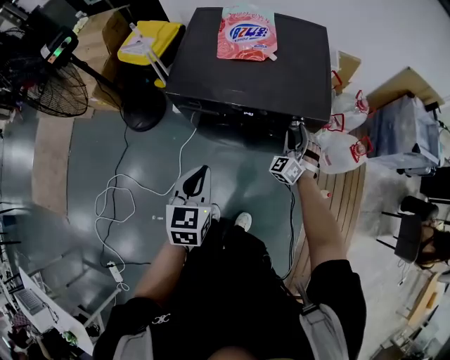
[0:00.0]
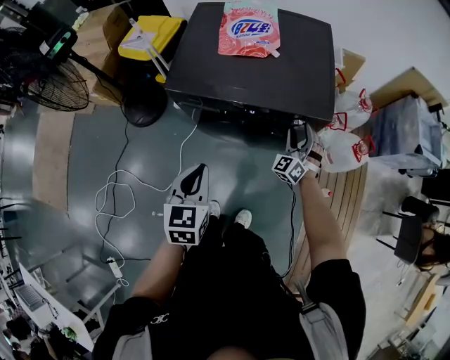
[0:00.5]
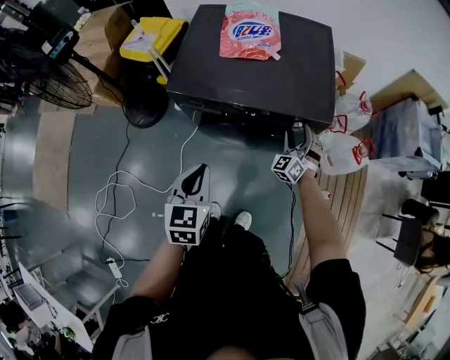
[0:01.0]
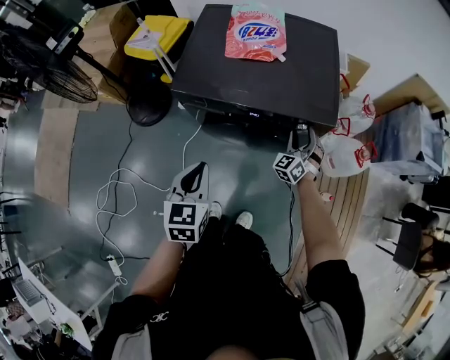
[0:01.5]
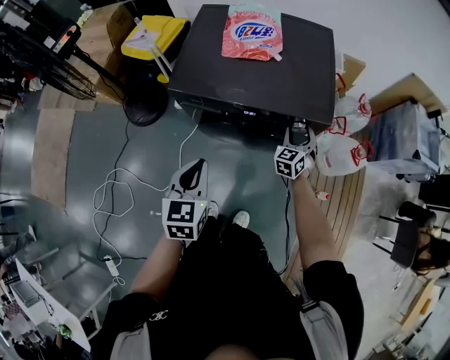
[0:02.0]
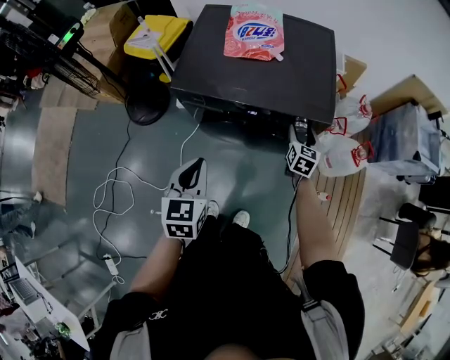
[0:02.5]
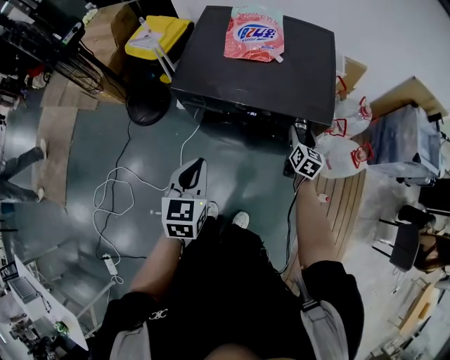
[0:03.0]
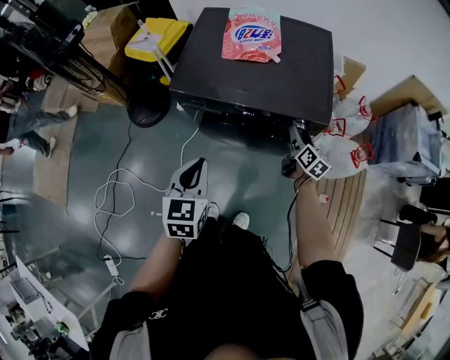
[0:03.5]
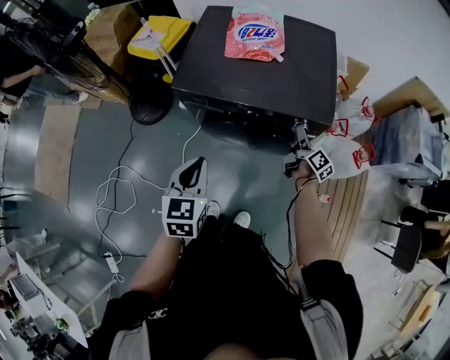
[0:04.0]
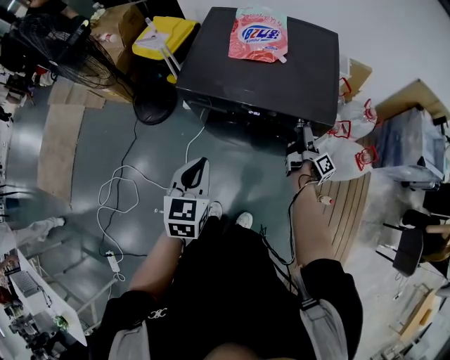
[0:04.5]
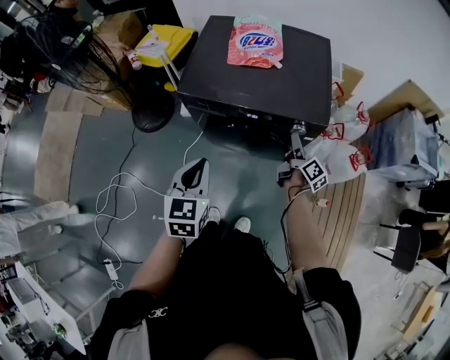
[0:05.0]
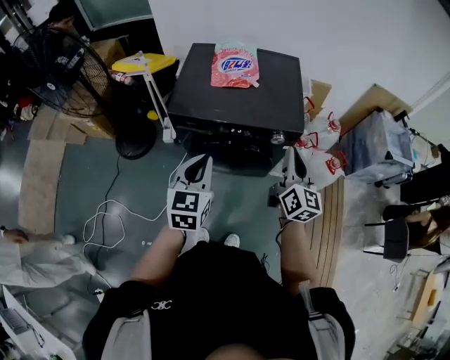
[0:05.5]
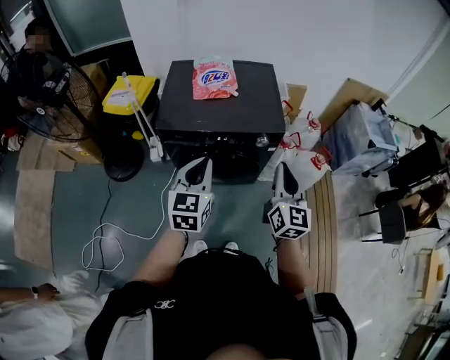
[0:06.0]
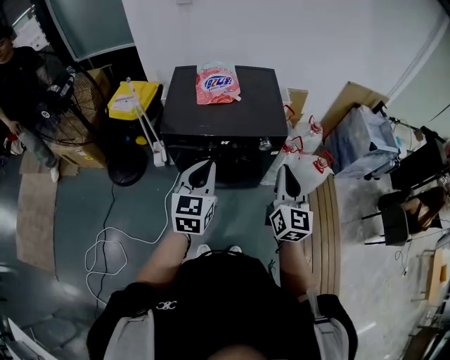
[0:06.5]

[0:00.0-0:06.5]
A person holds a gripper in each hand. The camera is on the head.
0:00.0 to 0:02.0: The right gripper swivels about 30 degrees.
0:02.0 to 0:04.5: The right gripper twists roughly 110 degrees clockwise, seen from behind.
0:04.5 to 0:06.5: The right gripper shifts roughly 40 cm upward and backward, twists roughly 80 degrees counterclockwise, seen from behind, and closes up; the left gripper goes roughly 10 cm upward, and swivels about 20 degrees.

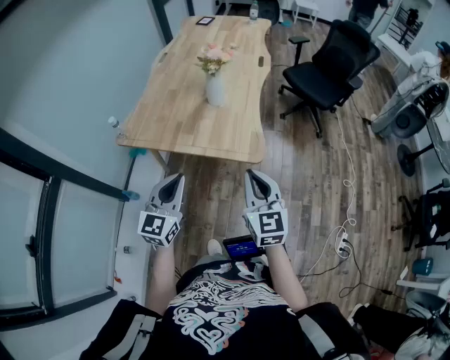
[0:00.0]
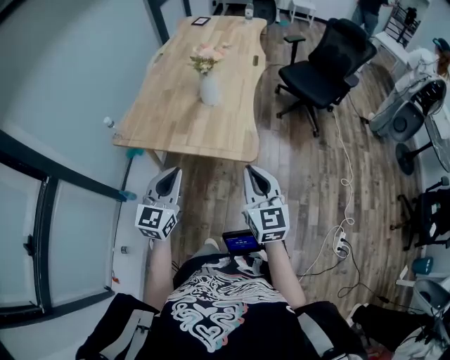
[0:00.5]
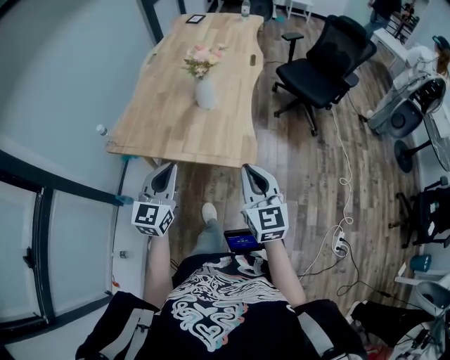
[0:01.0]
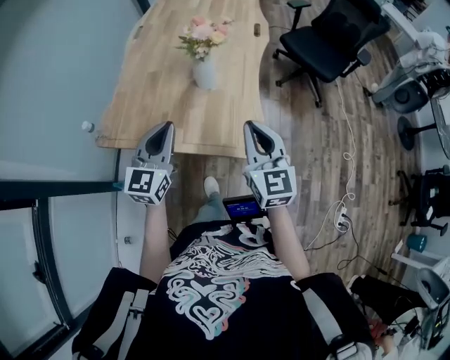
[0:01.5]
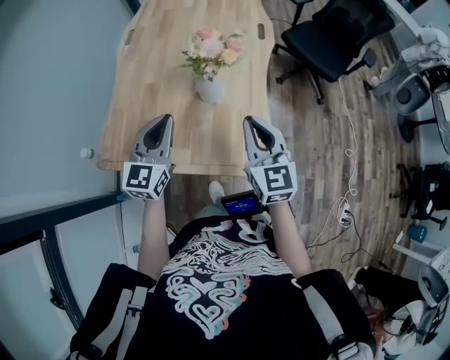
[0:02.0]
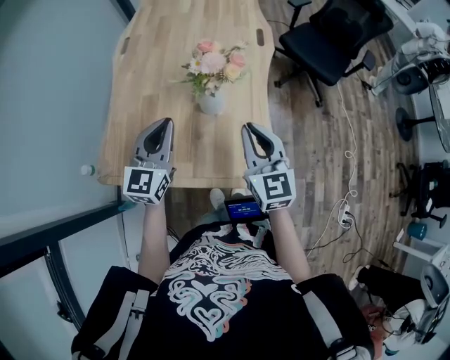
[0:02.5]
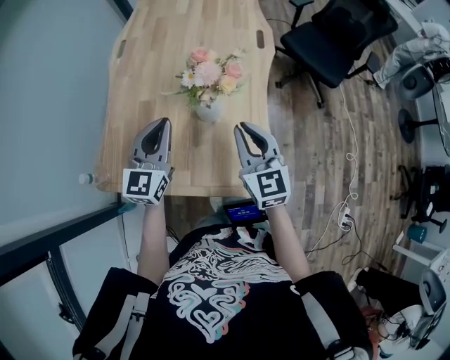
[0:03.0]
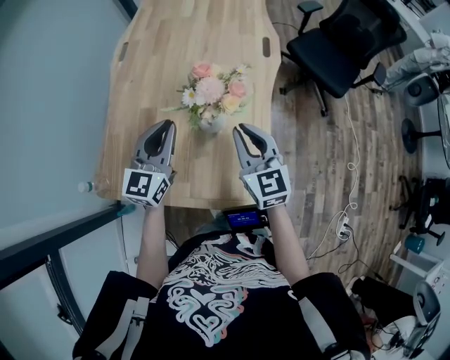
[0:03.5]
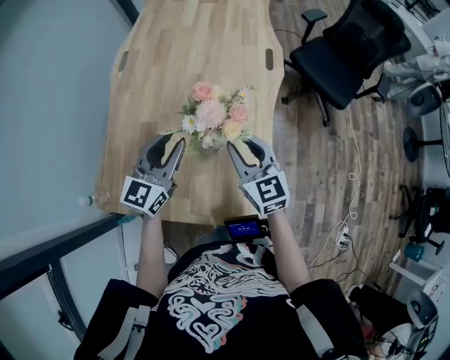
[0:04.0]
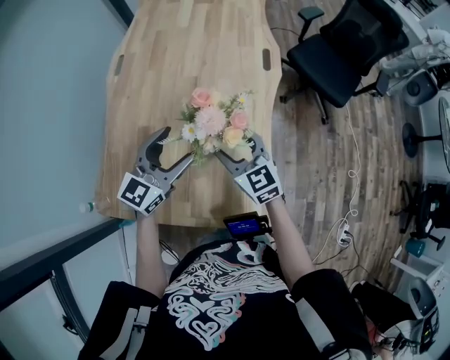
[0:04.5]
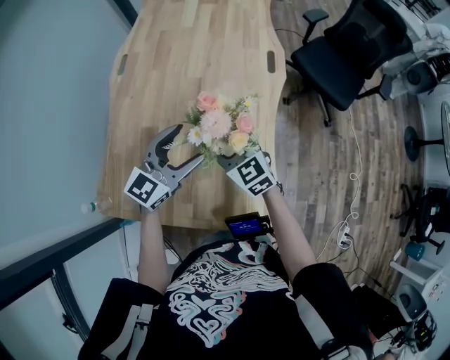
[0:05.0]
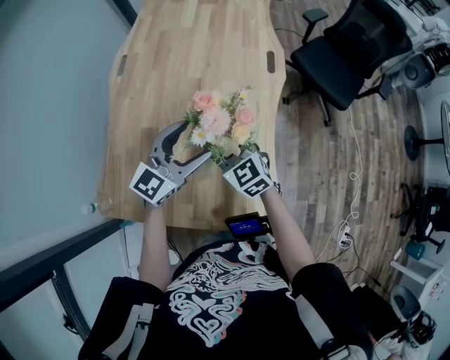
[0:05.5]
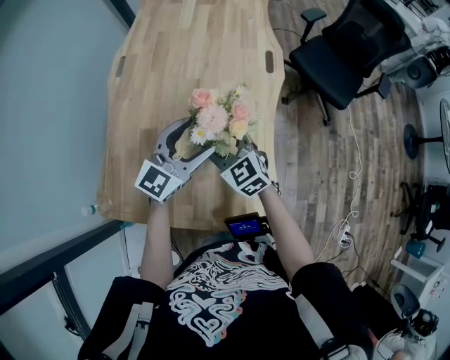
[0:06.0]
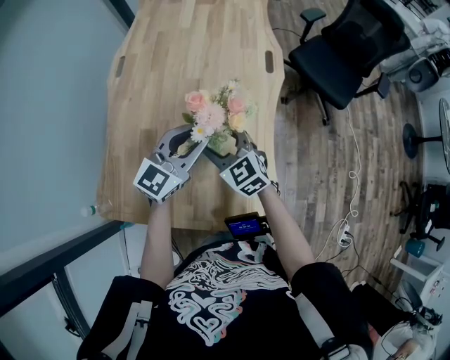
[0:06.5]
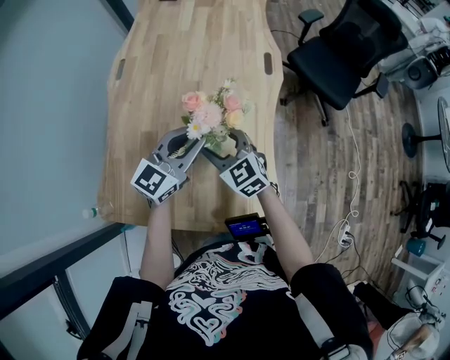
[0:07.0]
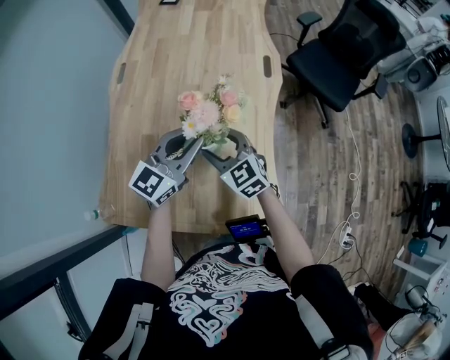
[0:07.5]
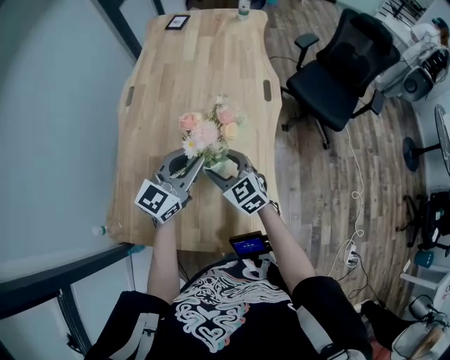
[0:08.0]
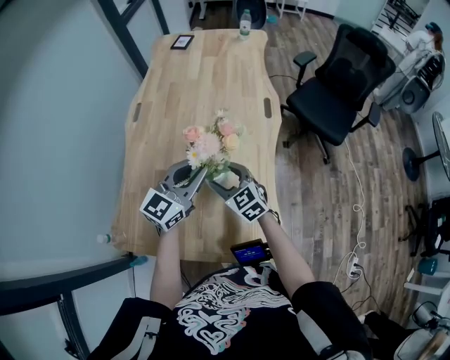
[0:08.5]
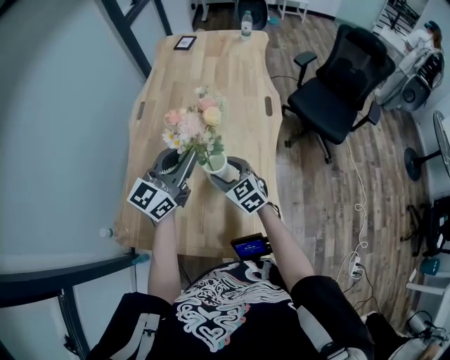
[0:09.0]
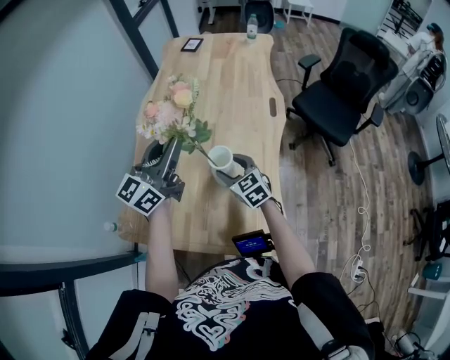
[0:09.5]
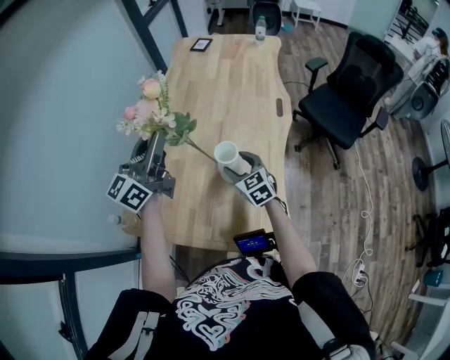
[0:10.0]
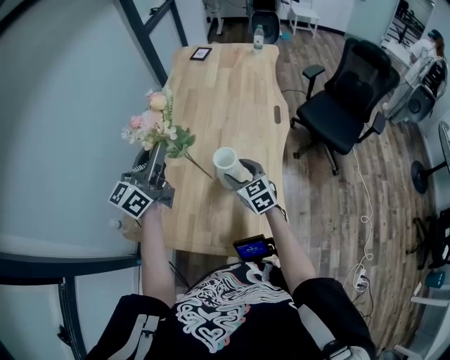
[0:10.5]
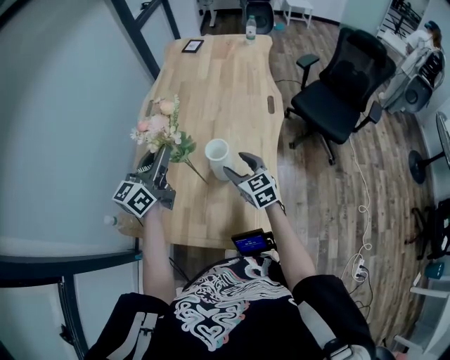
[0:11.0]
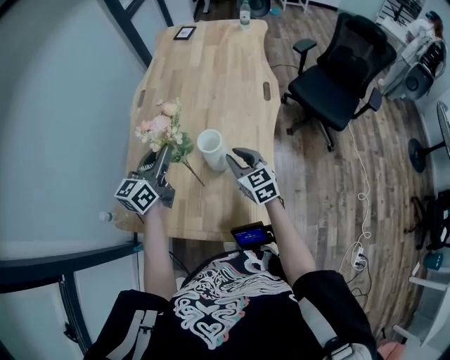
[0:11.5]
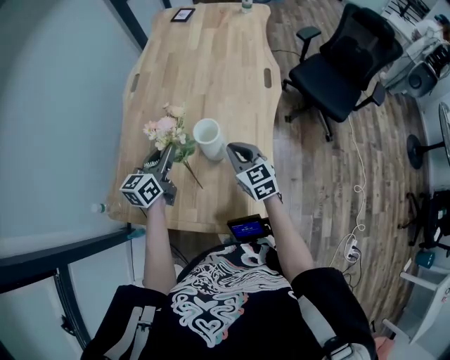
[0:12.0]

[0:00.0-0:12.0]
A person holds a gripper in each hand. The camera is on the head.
0:00.0 to 0:02.0: Both grippers move forward, roughly 30 cm.
0:02.0 to 0:04.0: The right gripper travels forward and downward by some 15 cm; the left gripper shifts roughly 15 cm forward.
0:04.0 to 0:06.0: The left gripper goes some 5 cm to the right, and opens its fingers, while the right gripper is displaced to the left by roughly 10 cm, changes its angle by approximately 20 degrees, and opens.
0:06.0 to 0:08.0: The left gripper closes.
0:08.0 to 0:10.0: The left gripper shifts some 20 cm upward and to the left, and swivels roughly 30 degrees.
0:10.0 to 0:12.0: The left gripper goes about 25 cm downward, and angles its fingers downward, by approximately 30 degrees. Meanwhile the right gripper closes.

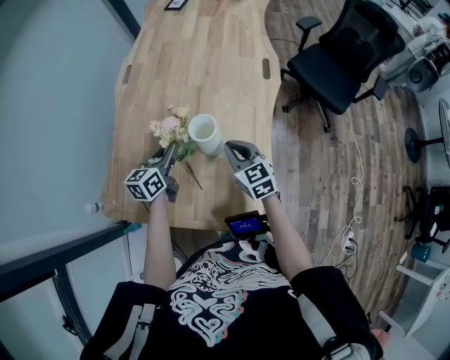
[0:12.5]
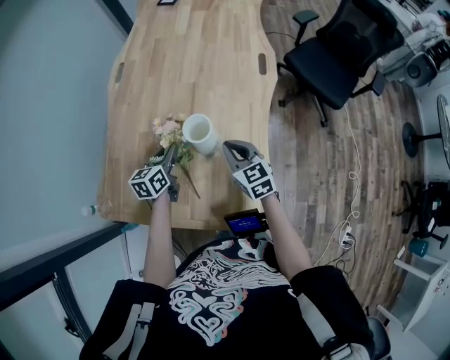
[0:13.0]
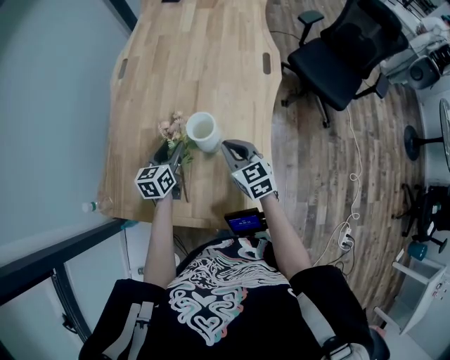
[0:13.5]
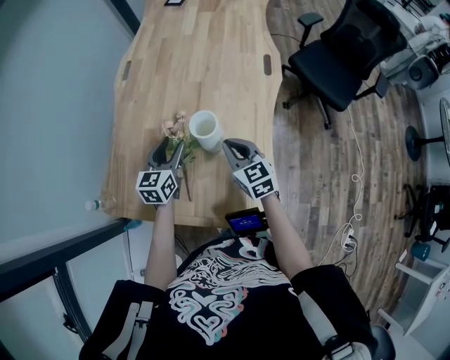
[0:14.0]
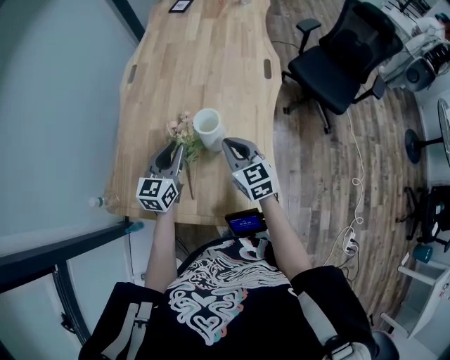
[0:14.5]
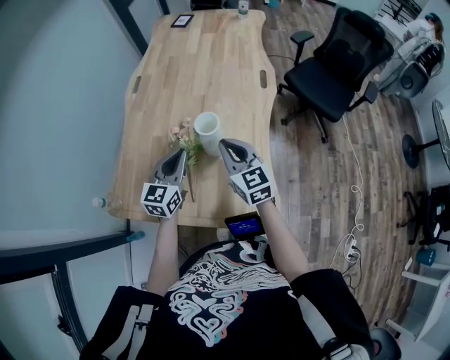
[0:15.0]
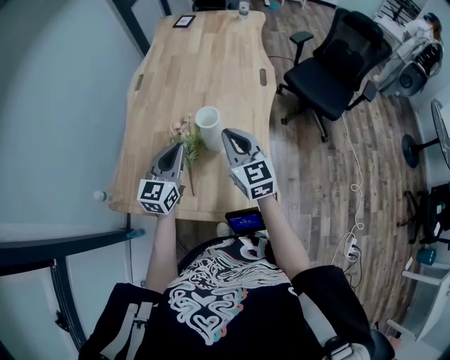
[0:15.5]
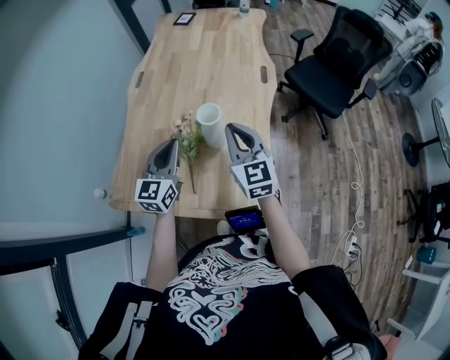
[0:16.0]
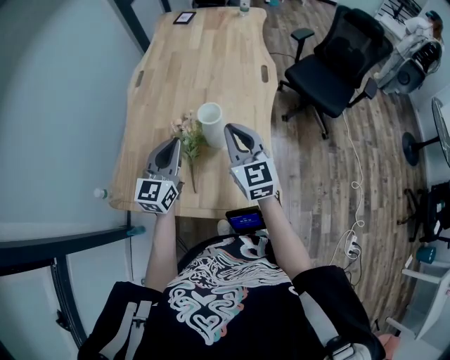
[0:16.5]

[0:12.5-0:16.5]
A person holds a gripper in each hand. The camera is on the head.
0:12.5 to 0:14.5: The left gripper ends up roughly 5 cm from where it was, and rotates about 20 degrees.
0:14.5 to 0:16.5: Both grippers travel together upward, approximately 10 cm.

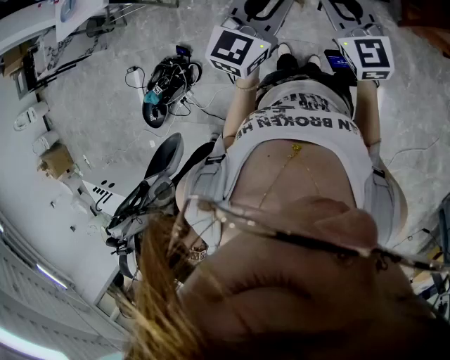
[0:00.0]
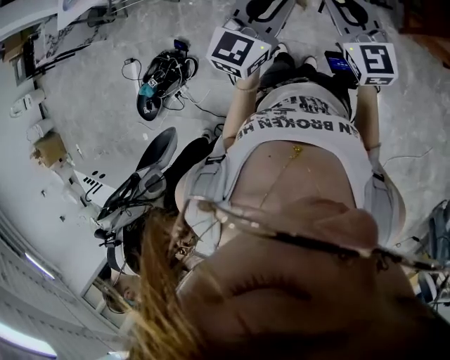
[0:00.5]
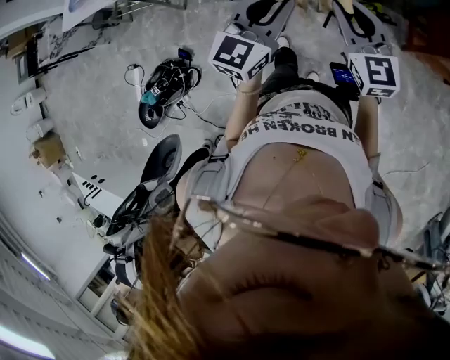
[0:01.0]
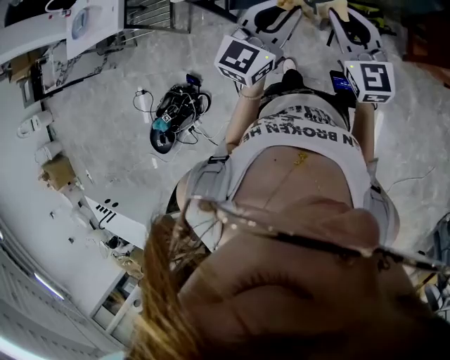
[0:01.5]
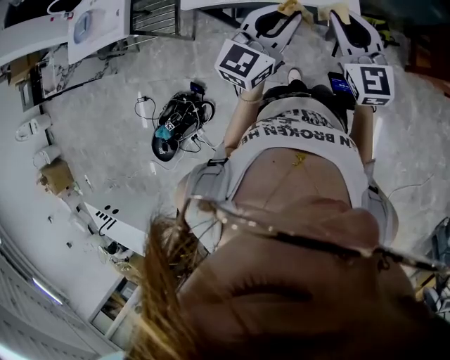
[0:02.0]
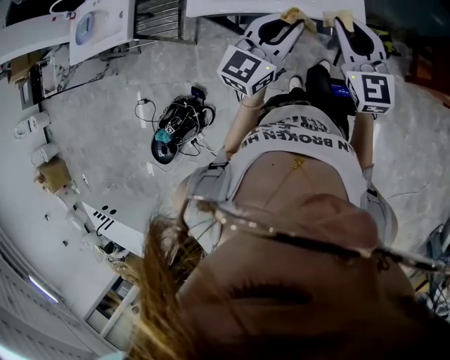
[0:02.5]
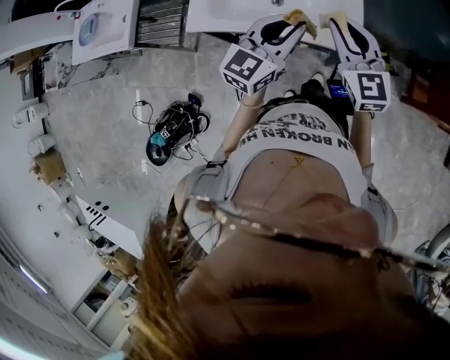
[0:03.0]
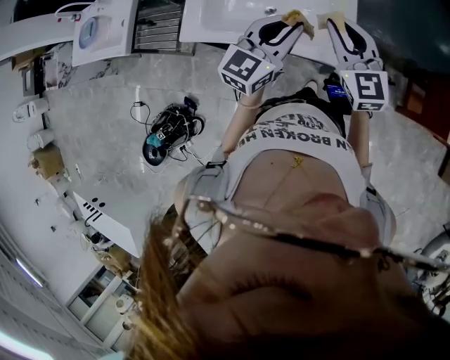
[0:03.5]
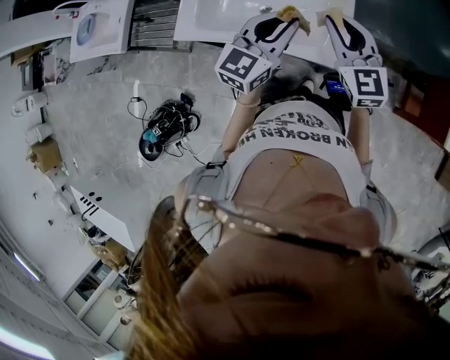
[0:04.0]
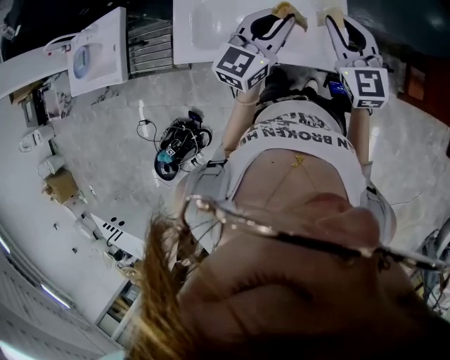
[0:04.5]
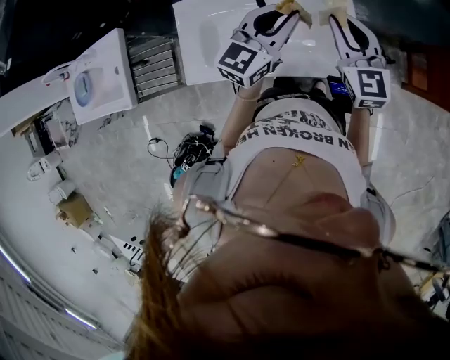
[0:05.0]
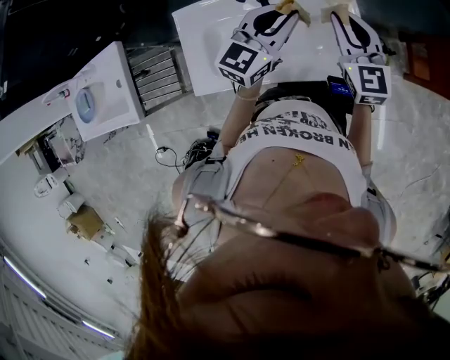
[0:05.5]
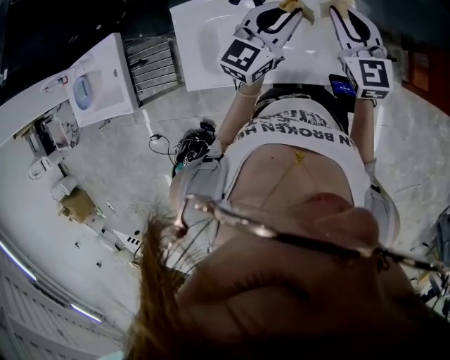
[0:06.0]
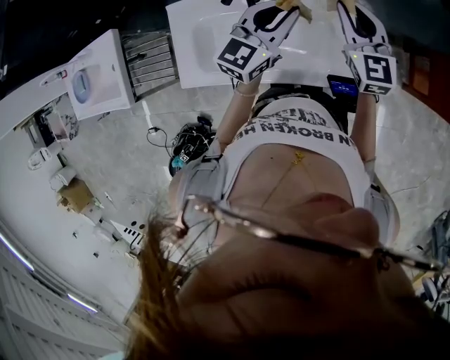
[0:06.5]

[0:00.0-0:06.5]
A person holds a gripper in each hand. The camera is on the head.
0:00.0 to 0:02.0: The two grippers go about 20 cm forward and to the left.
0:02.0 to 0:04.5: Both grippers travel together forward, roughly 25 cm.
0:04.5 to 0:06.5: The two grippers go some 15 cm forward.
